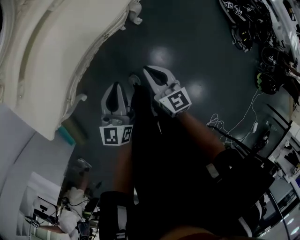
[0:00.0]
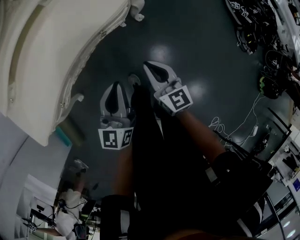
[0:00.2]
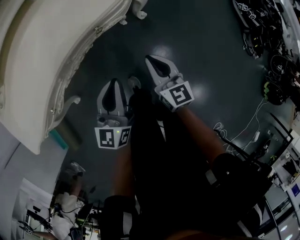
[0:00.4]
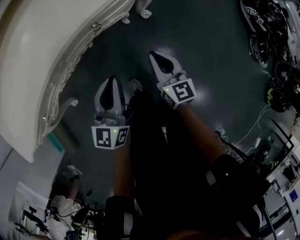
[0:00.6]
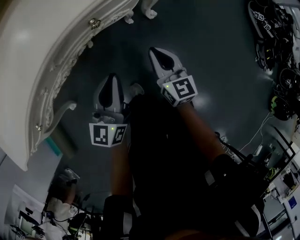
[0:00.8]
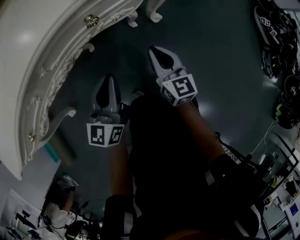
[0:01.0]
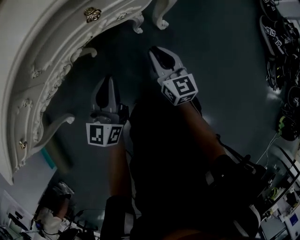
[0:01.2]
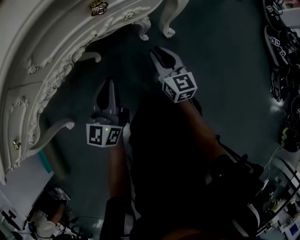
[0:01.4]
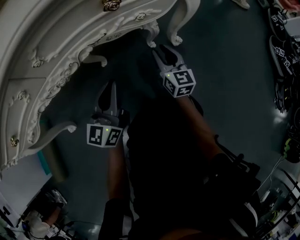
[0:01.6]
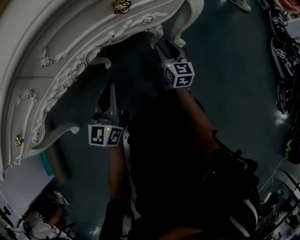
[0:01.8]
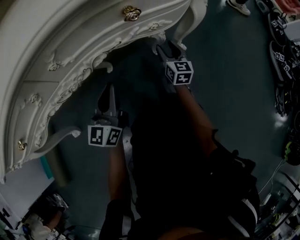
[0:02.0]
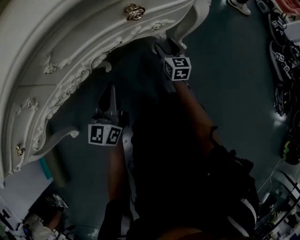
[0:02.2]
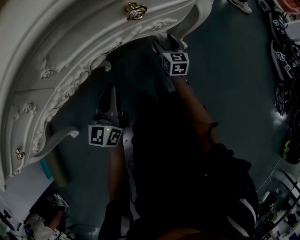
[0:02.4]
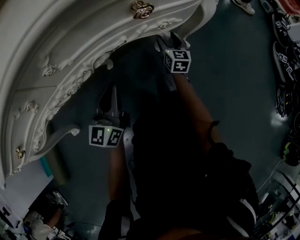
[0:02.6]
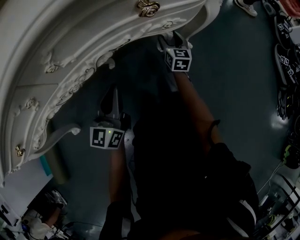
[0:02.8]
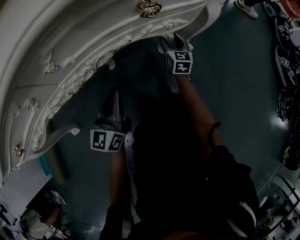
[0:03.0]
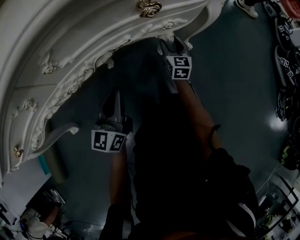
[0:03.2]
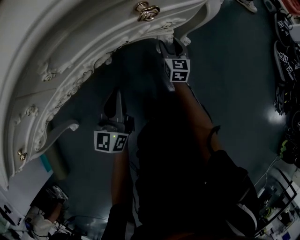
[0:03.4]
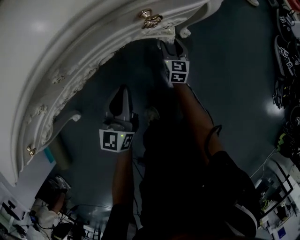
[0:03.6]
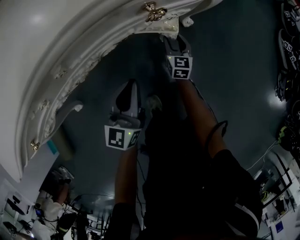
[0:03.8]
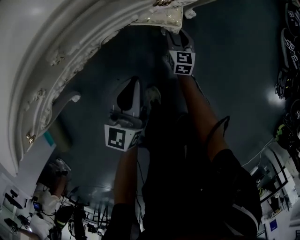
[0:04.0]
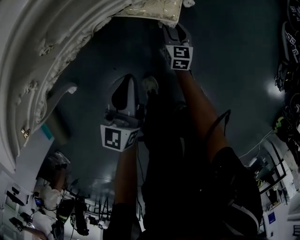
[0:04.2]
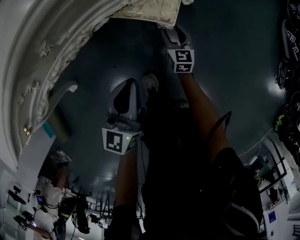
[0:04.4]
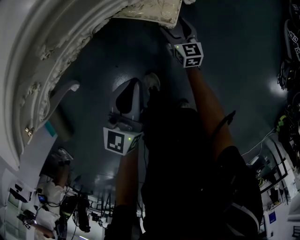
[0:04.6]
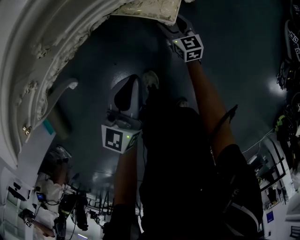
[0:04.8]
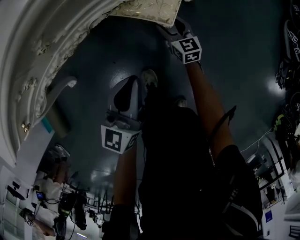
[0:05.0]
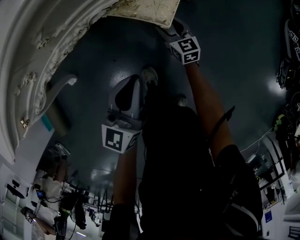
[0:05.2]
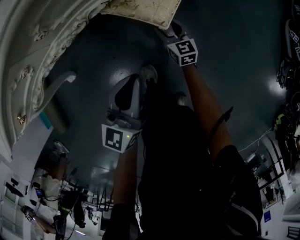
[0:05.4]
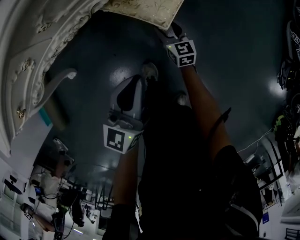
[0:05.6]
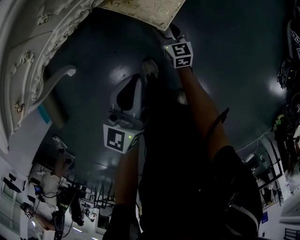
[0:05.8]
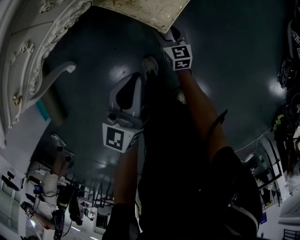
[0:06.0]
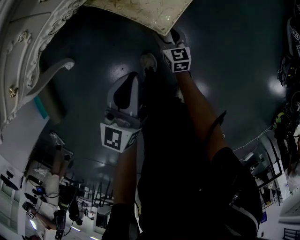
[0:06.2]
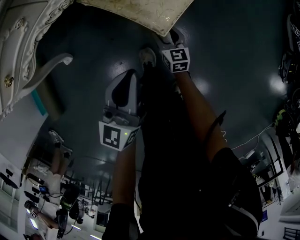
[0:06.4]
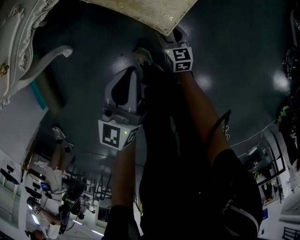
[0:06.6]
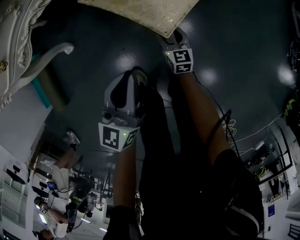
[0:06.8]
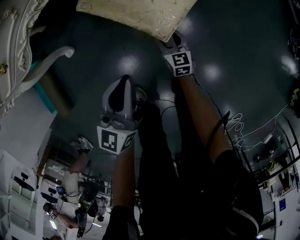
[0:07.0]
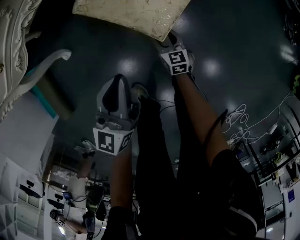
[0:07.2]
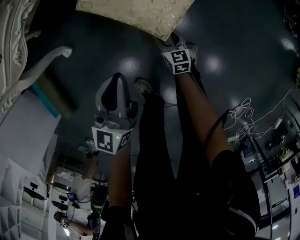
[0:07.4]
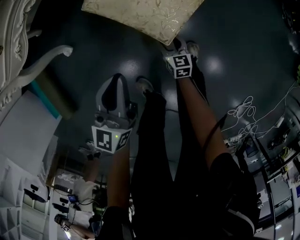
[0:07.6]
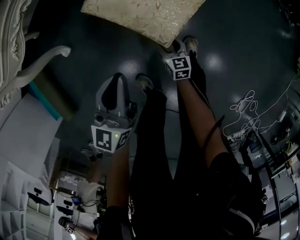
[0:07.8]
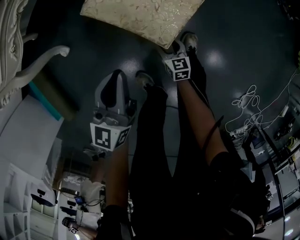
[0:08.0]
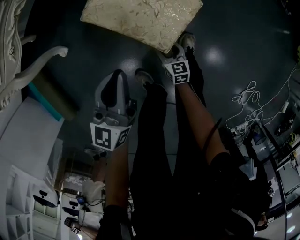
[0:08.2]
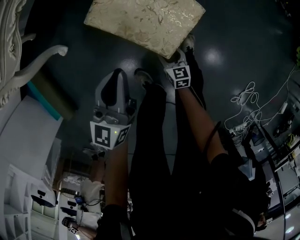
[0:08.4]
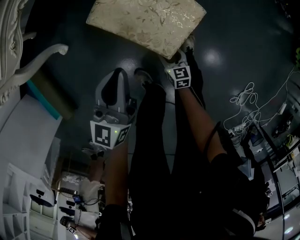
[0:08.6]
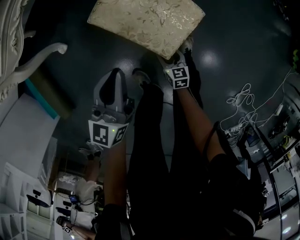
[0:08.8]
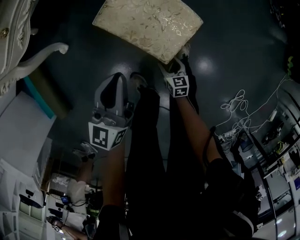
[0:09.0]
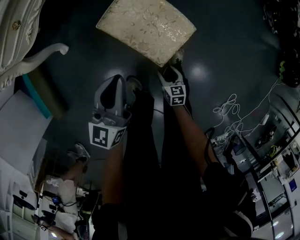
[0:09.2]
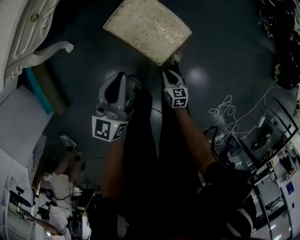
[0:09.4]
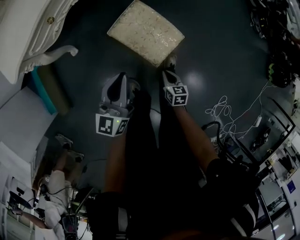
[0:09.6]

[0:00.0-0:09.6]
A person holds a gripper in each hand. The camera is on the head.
0:00.0 to 0:01.6: The left gripper travels downward by about 40 cm. Meanwhile the right gripper shifts some 50 cm downward and forward, and opens its fingers.
0:01.6 to 0:03.2: The right gripper travels forward and downward by roughly 15 cm; the left gripper moves approximately 5 cm.
0:03.2 to 0:04.8: The right gripper heads backward, covering roughly 10 cm, and rotates about 20 degrees. The left gripper moves upward, backward and to the right, about 15 cm.
0:04.8 to 0:06.4: The left gripper goes roughly 10 cm backward. Meanwhile the right gripper goes roughly 20 cm backward.
0:06.4 to 0:08.0: The left gripper goes about 20 cm backward and to the left. The right gripper heads backward, covering some 30 cm.
0:08.0 to 0:09.6: The right gripper travels upward and backward by some 20 cm, and closes up; the left gripper travels upward by approximately 15 cm.

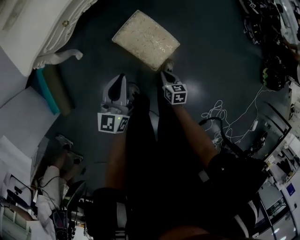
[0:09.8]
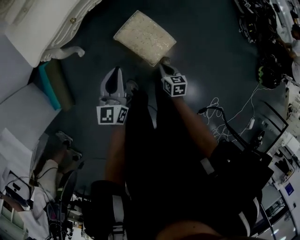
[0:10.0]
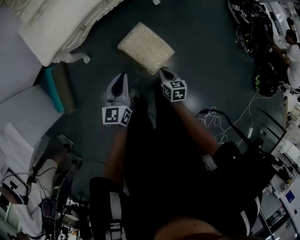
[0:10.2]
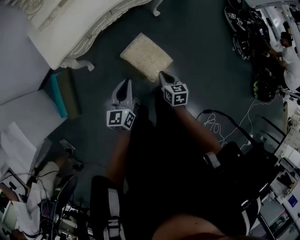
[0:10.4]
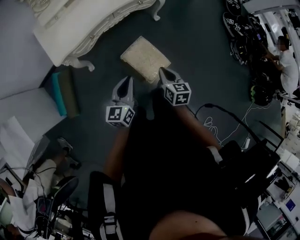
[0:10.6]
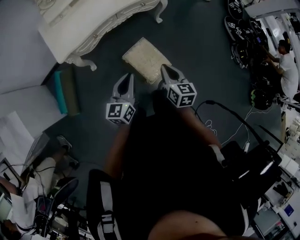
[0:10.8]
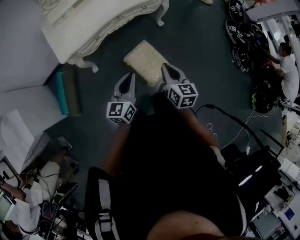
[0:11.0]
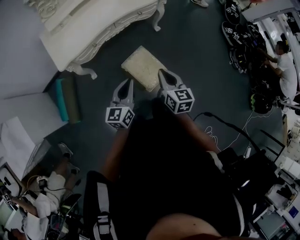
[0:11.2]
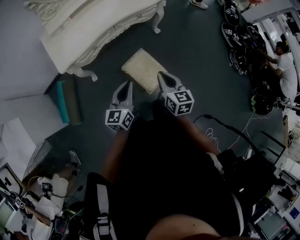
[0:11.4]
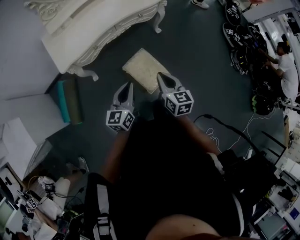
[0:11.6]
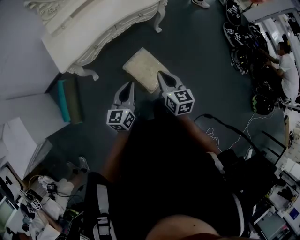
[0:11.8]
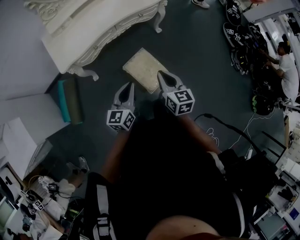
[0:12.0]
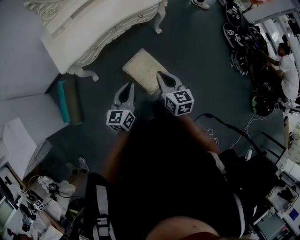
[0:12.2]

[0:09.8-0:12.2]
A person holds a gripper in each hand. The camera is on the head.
0:09.8 to 0:11.0: The left gripper shifts about 20 cm upward. Meanwhile the right gripper shifts about 40 cm upward, and changes its angle by about 30 degrees.
0:11.0 to 0:12.2: The grippers make only small movements.

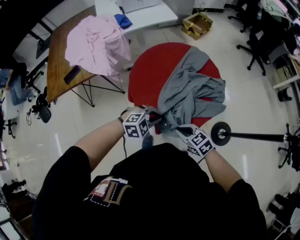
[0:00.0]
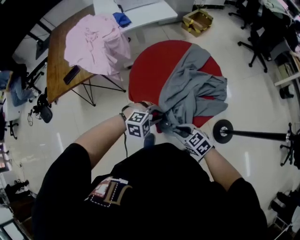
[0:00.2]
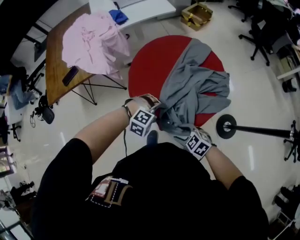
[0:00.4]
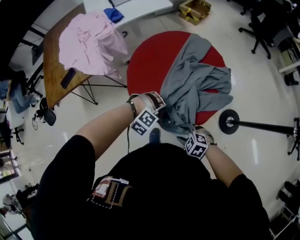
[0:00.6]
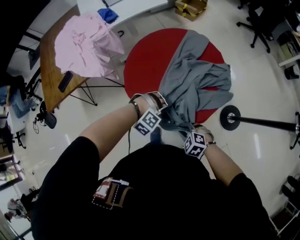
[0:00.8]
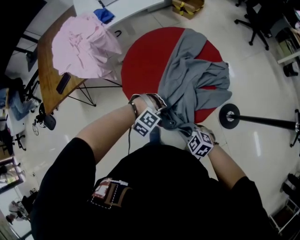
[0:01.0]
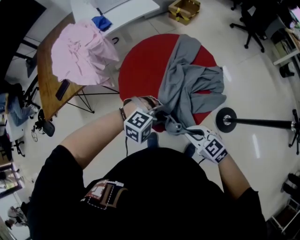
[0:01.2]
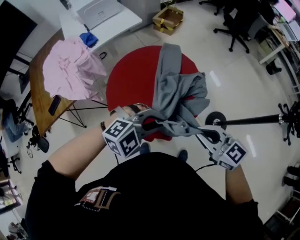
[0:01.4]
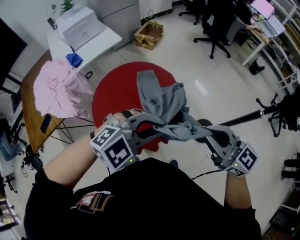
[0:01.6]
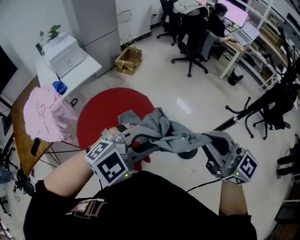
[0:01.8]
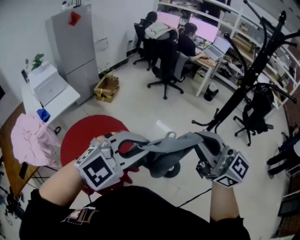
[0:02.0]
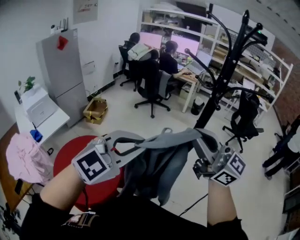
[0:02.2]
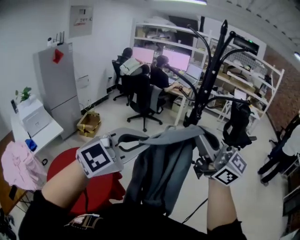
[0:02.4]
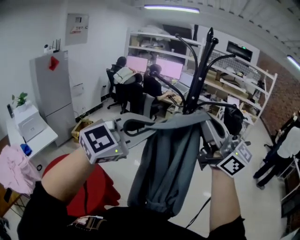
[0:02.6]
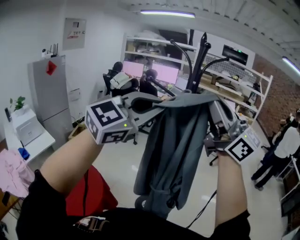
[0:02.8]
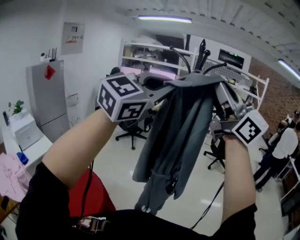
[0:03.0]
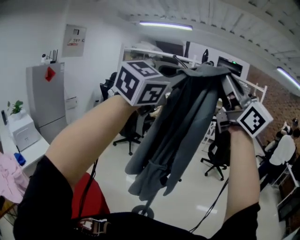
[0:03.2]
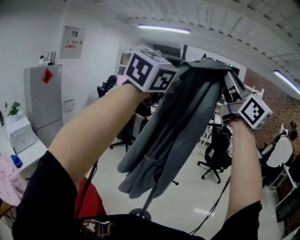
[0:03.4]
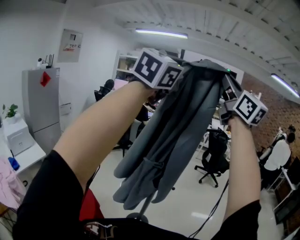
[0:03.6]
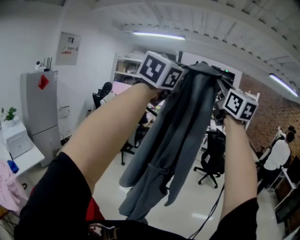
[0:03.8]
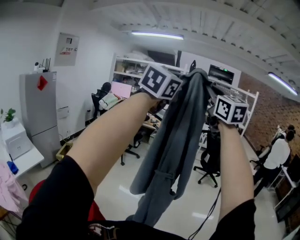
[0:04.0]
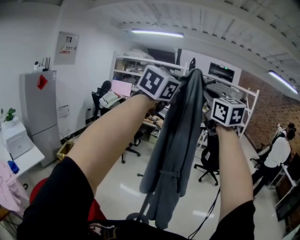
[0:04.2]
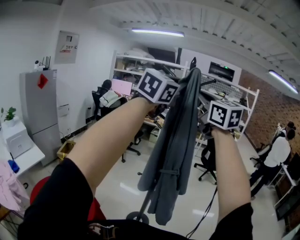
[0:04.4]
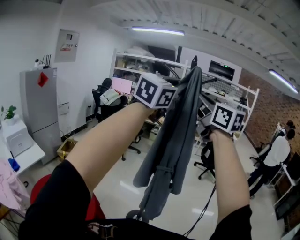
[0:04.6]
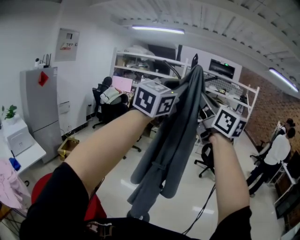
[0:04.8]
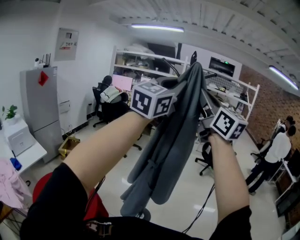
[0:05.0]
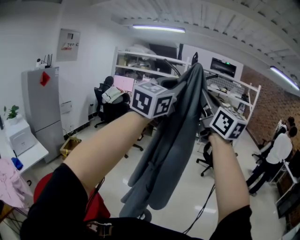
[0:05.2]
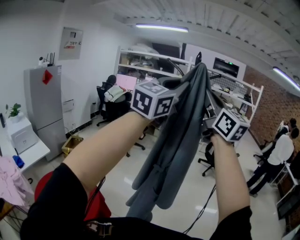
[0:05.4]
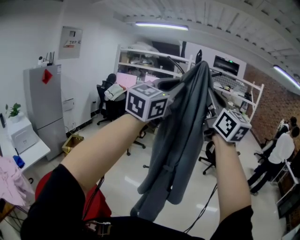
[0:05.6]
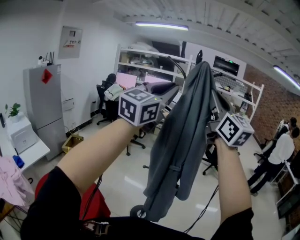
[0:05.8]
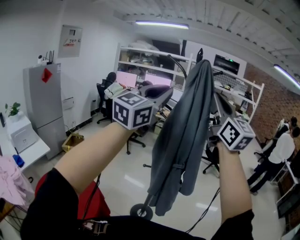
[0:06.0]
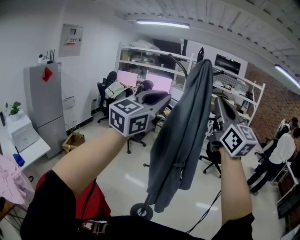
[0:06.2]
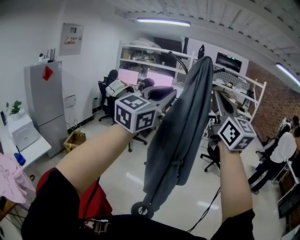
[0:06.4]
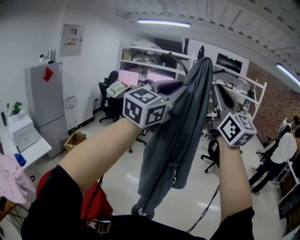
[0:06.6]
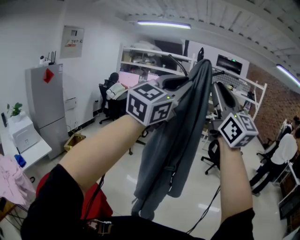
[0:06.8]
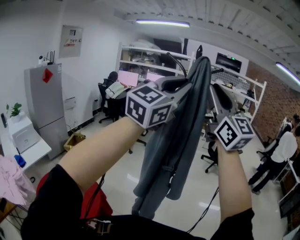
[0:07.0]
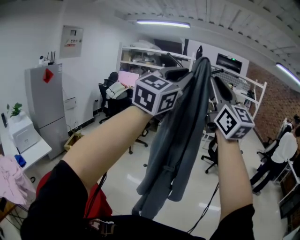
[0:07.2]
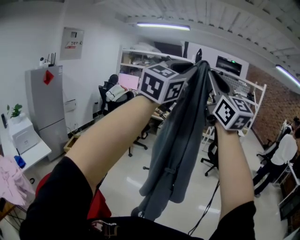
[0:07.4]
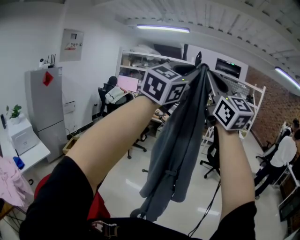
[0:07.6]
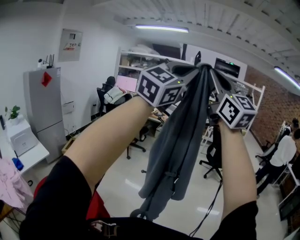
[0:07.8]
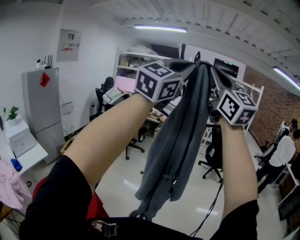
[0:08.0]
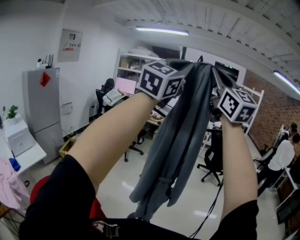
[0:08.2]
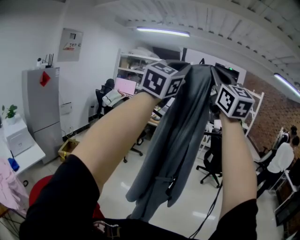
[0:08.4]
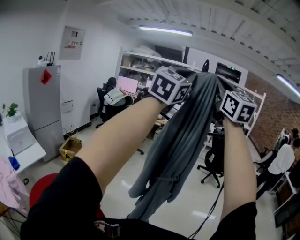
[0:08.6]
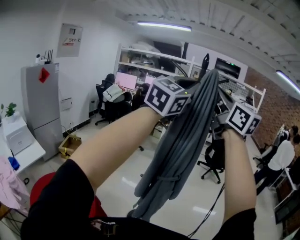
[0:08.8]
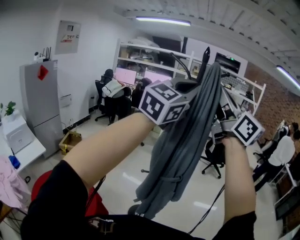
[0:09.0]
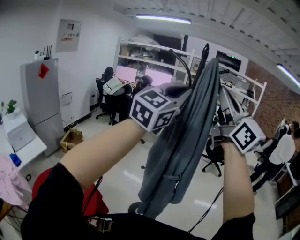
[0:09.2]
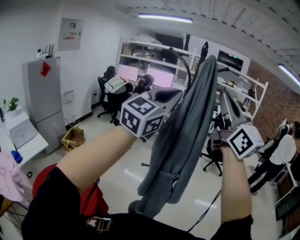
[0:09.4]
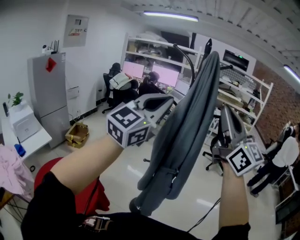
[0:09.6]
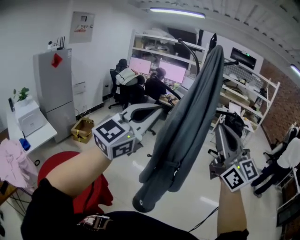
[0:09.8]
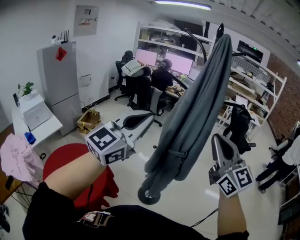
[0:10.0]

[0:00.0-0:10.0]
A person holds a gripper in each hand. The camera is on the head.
0:00.0 to 0:01.4: Both grippers move upward, approximately 15 cm. The left gripper swivels some 30 degrees, and opens, then closes once more, while the right gripper turns by approximately 30 degrees, and opens, then closes once more.
0:01.4 to 0:02.8: The pair of grippers is taken about 40 cm. Both grippers move upward, roughly 50 cm. The left gripper angles its fingers upward, by some 40 degrees, while the right gripper tips its fingers upward by about 50 degrees.
0:02.8 to 0:04.2: The right gripper travels forward and upward by some 15 cm, and swivels about 40 degrees. The left gripper shifts some 20 cm upward and forward.
0:04.2 to 0:05.8: The right gripper shifts about 5 cm backward. Meanwhile the left gripper heads downward and backward, covering roughly 10 cm.
0:05.8 to 0:07.2: The left gripper ends up some 5 cm from where it was.
0:07.2 to 0:08.6: The right gripper moves forward and upward, about 10 cm. The left gripper is displaced forward by about 10 cm.
0:08.6 to 0:10.0: The two grippers go about 35 cm downward and backward. The right gripper turns by roughly 20 degrees.

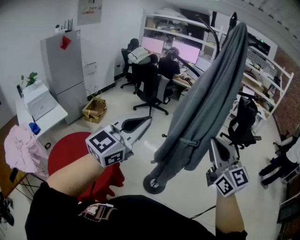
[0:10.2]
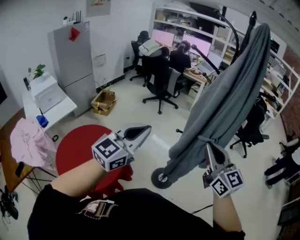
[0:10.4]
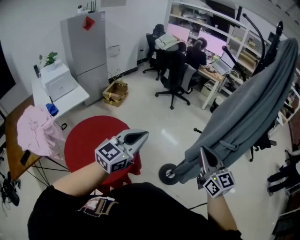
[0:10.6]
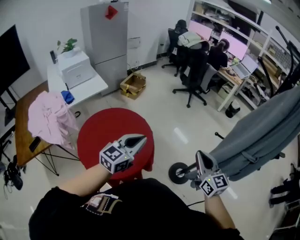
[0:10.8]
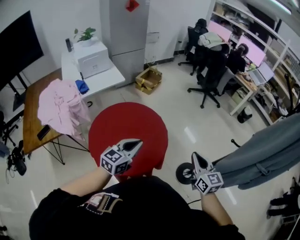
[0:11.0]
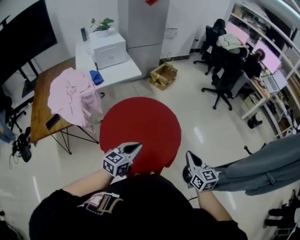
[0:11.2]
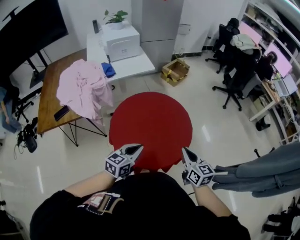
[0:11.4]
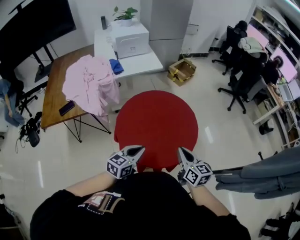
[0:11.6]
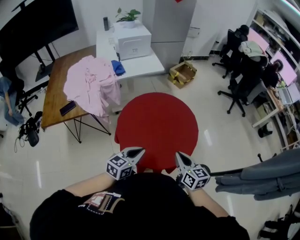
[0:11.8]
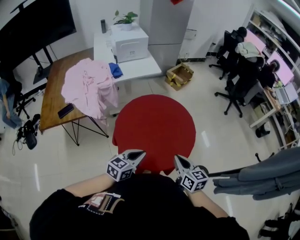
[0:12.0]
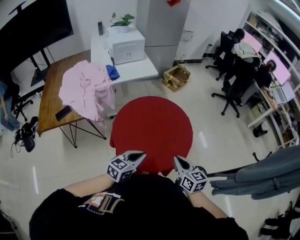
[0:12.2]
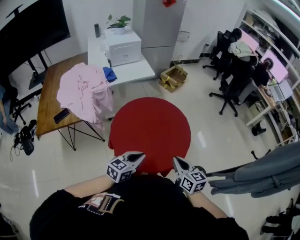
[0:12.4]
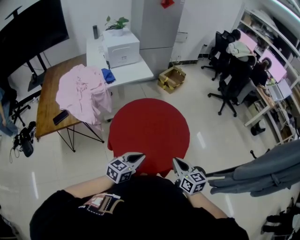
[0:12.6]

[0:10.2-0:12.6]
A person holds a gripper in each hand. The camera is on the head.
0:10.2 to 0:11.4: Both grippers are carried approximately 40 cm. The right gripper turns by some 50 degrees. The left gripper points its fingers about 30 degrees further downward.
0:11.4 to 0:12.6: The right gripper changes place by approximately 5 cm.
